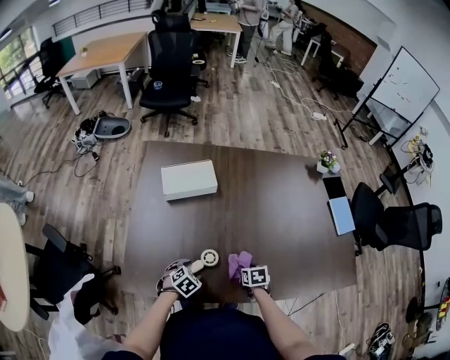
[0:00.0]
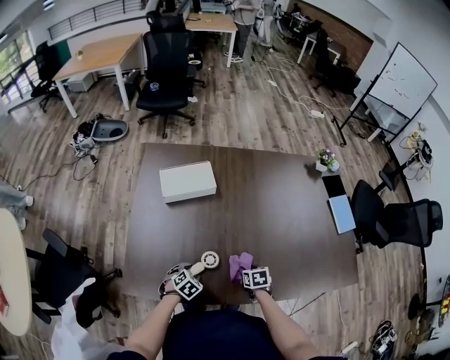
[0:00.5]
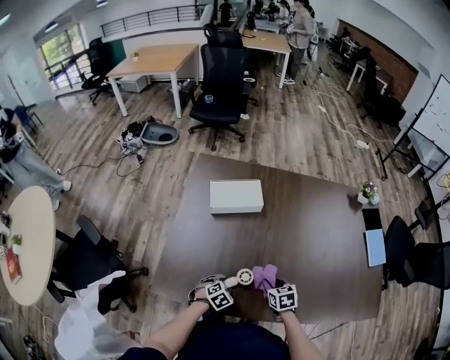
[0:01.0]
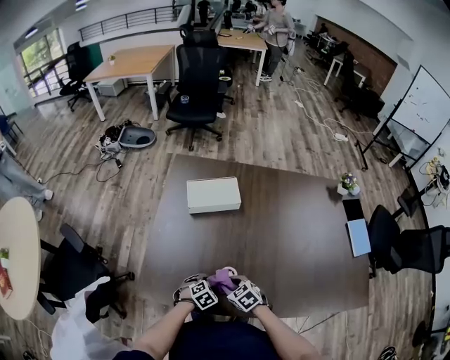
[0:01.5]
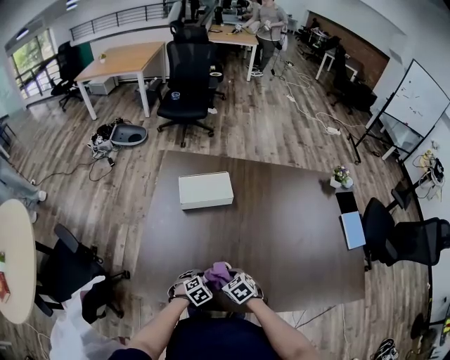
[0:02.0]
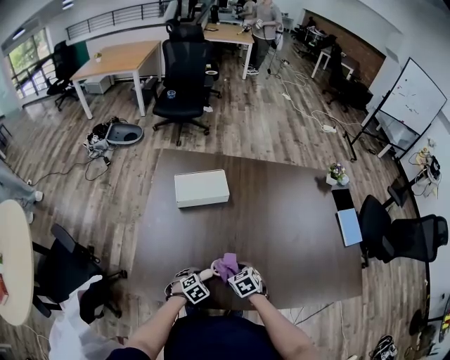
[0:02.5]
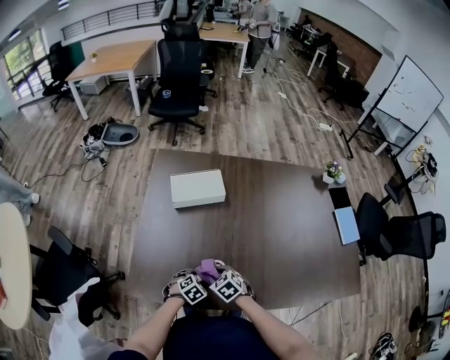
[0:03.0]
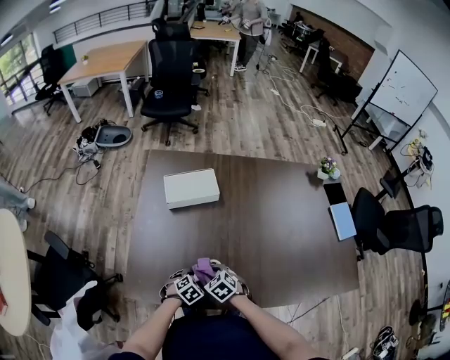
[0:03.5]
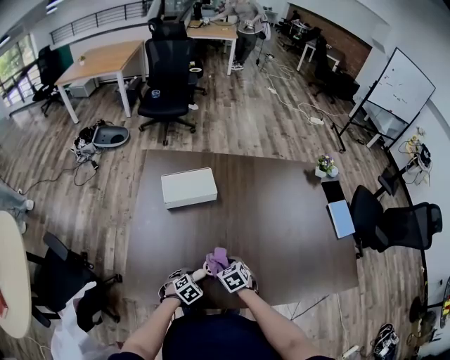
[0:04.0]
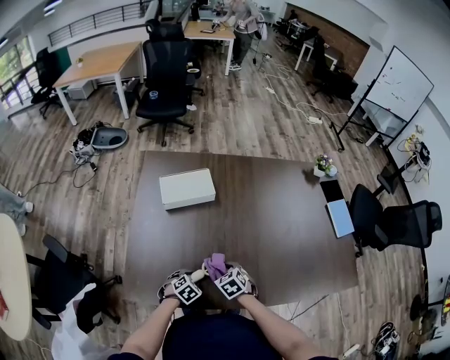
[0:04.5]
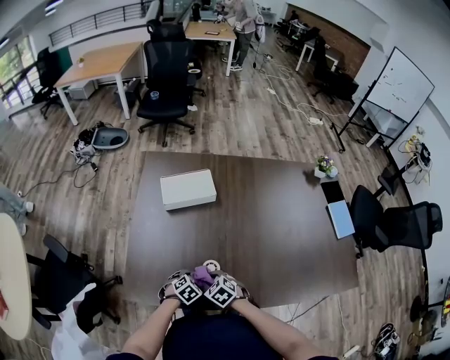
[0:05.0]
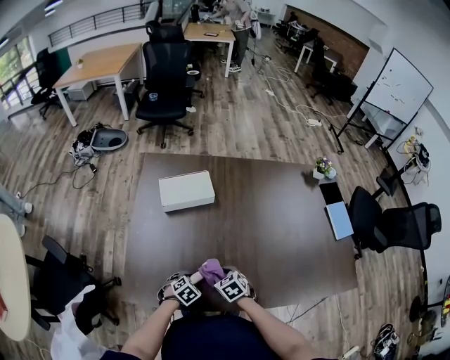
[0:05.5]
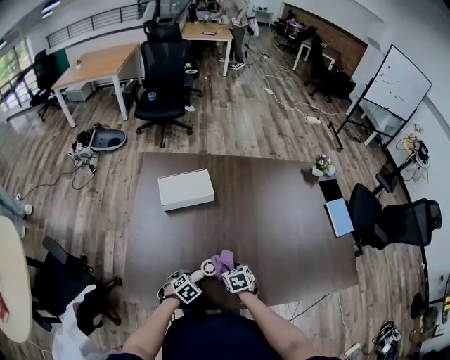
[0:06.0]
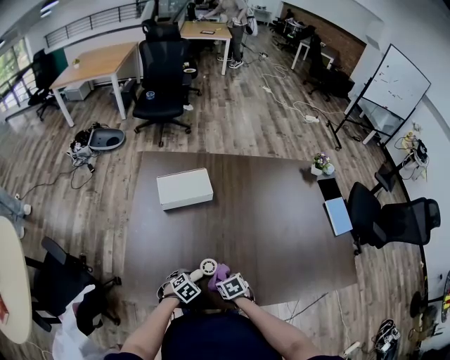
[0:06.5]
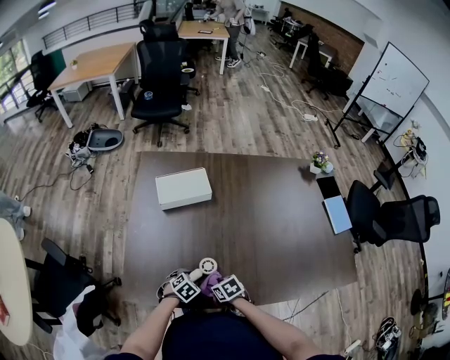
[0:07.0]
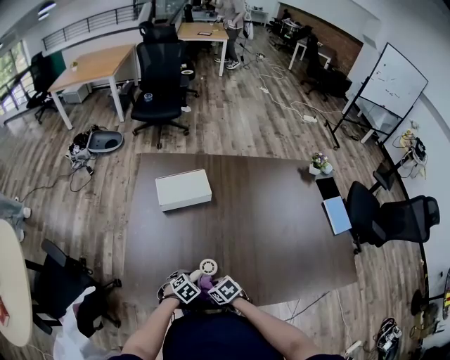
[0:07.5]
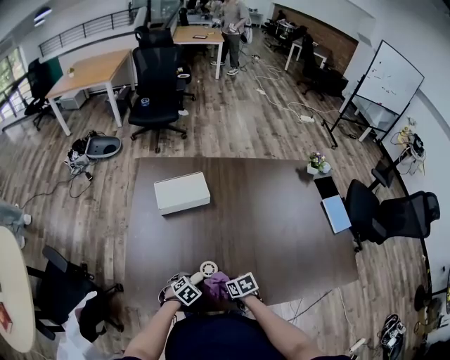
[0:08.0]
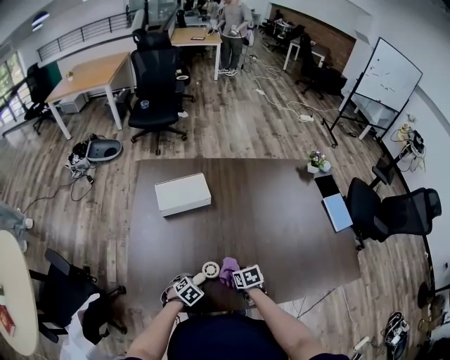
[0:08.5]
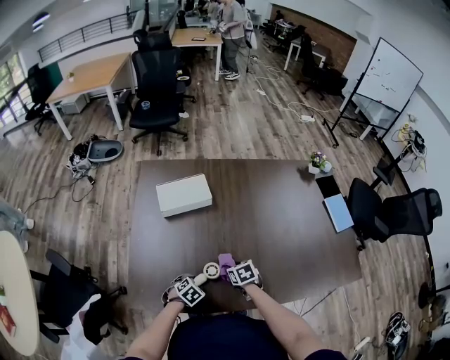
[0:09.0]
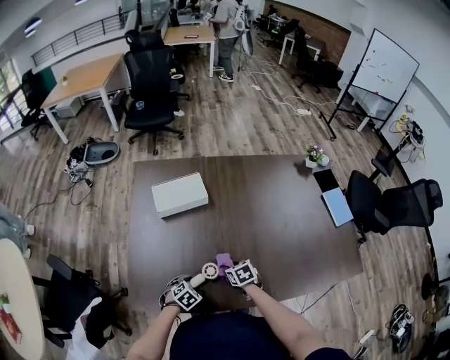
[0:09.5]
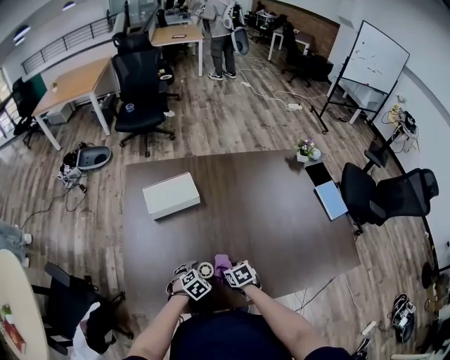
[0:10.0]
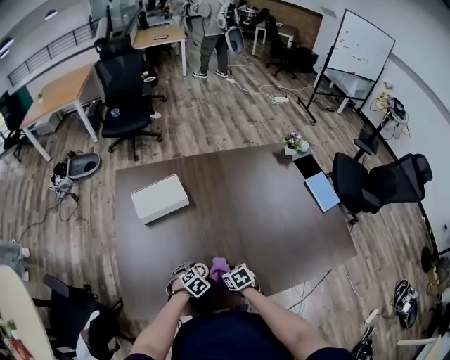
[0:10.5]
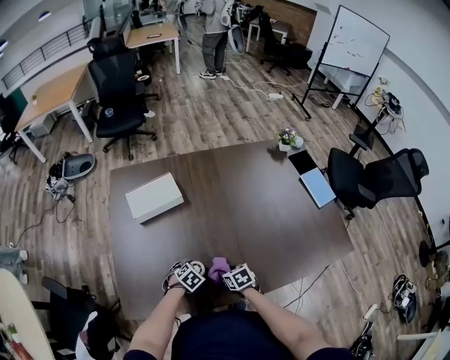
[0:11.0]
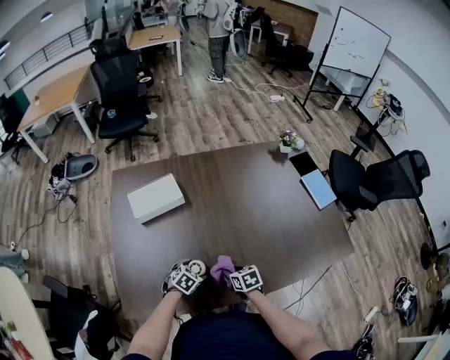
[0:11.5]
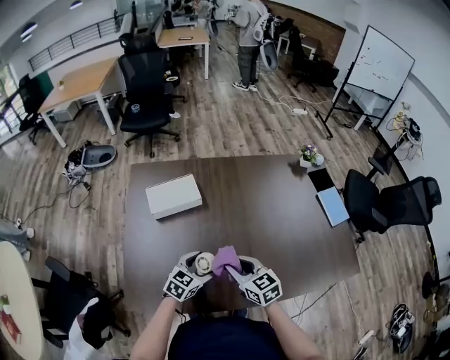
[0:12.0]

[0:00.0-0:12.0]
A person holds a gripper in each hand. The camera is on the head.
0:00.0 to 0:02.0: The right gripper travels to the left by roughly 15 cm, and turns by some 40 degrees.
0:02.0 to 0:04.0: The right gripper moves left and right over roughly 5 cm, changing direction 2 times.
0:06.0 to 0:08.0: The right gripper swivels some 20 degrees.
0:08.0 to 0:10.0: The left gripper moves to the right, approximately 5 cm, and opens up, while the right gripper travels forward by about 5 cm.
0:10.0 to 0:12.0: The grippers both shift upward by approximately 20 cm. The left gripper points its fingers some 30 degrees further upward; the right gripper tips its fingers upward by some 30 degrees.

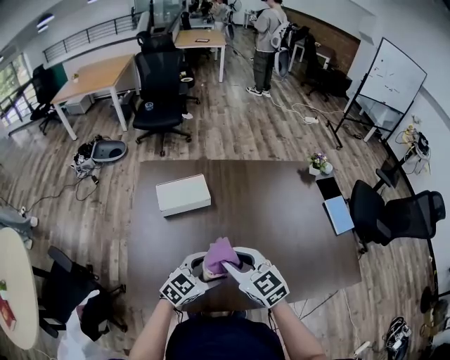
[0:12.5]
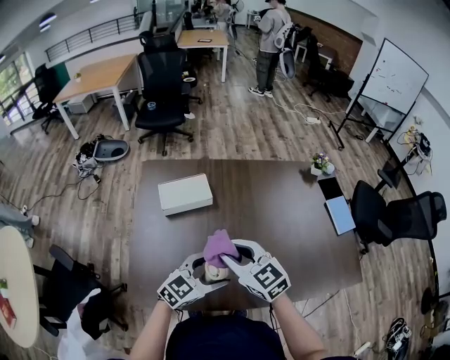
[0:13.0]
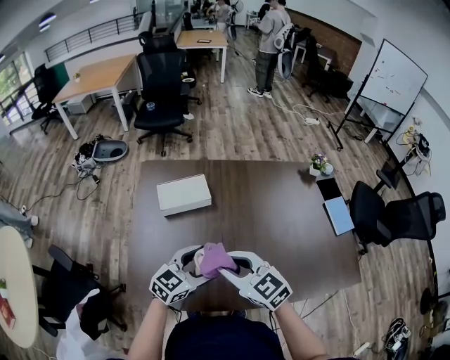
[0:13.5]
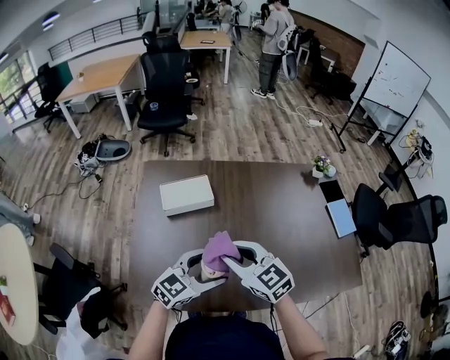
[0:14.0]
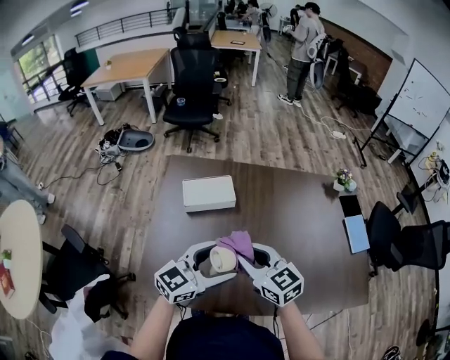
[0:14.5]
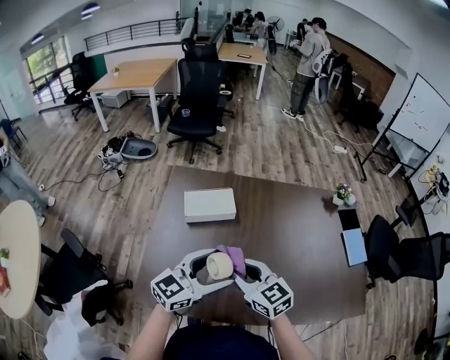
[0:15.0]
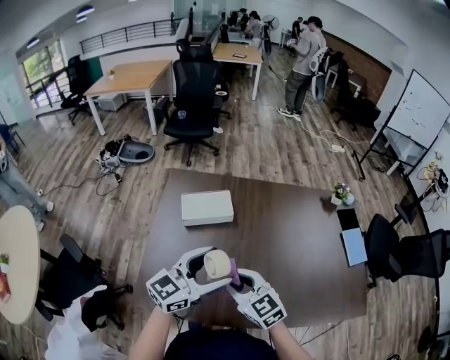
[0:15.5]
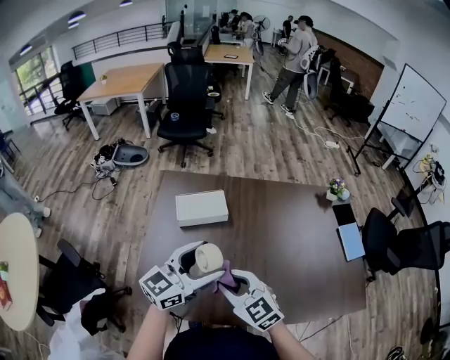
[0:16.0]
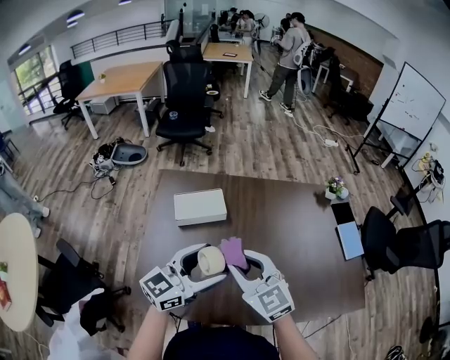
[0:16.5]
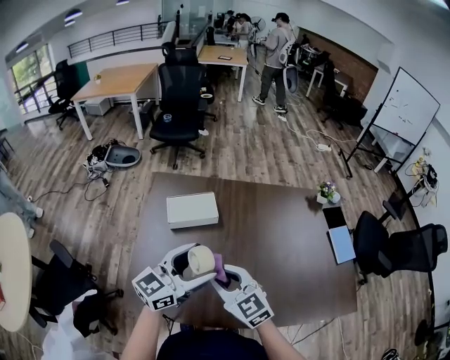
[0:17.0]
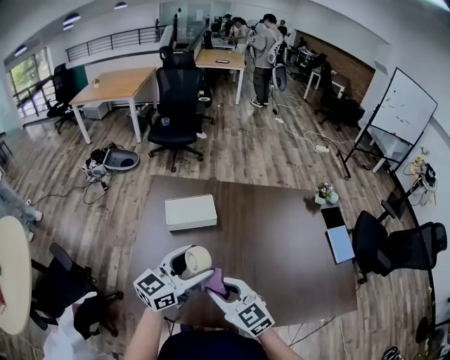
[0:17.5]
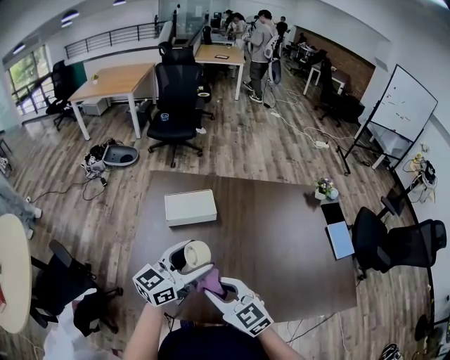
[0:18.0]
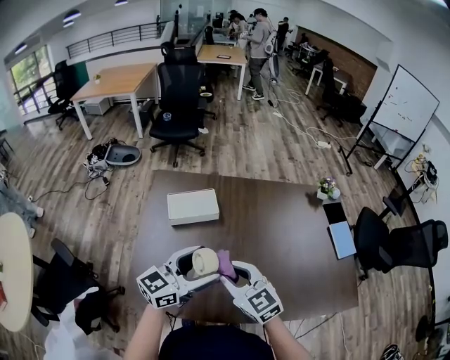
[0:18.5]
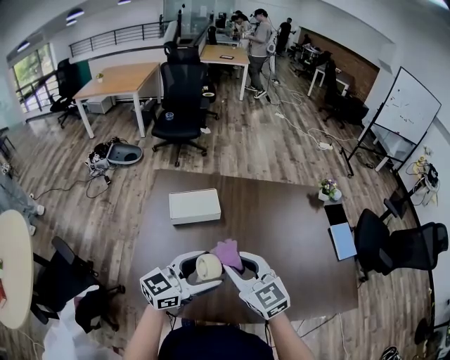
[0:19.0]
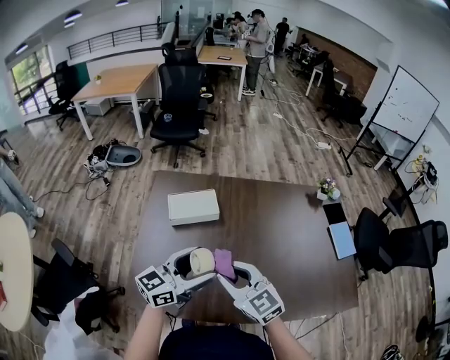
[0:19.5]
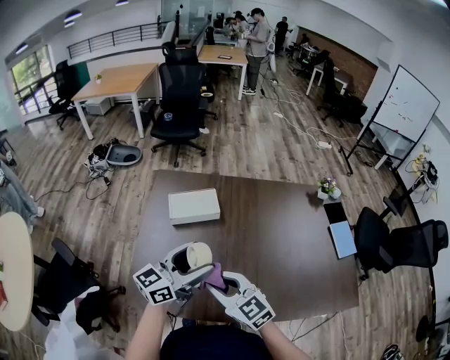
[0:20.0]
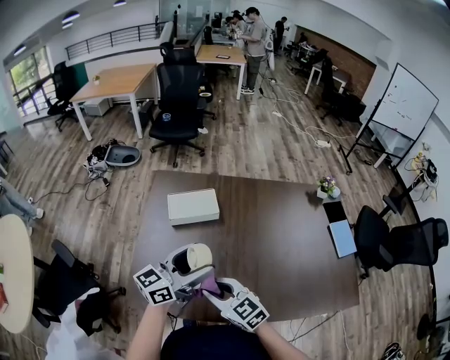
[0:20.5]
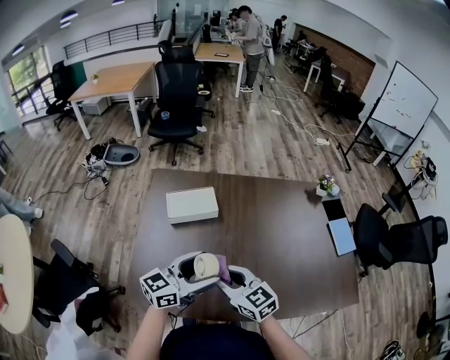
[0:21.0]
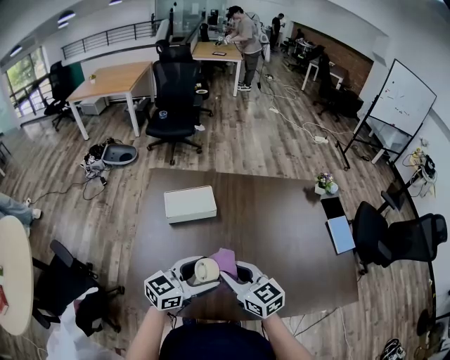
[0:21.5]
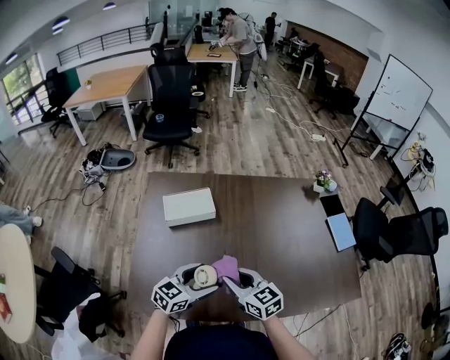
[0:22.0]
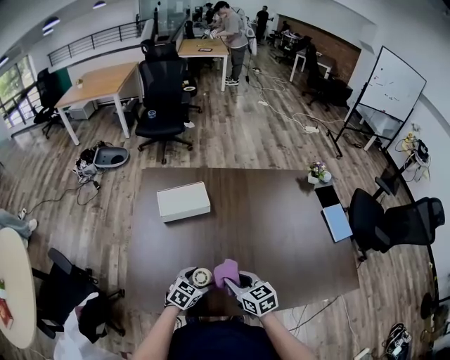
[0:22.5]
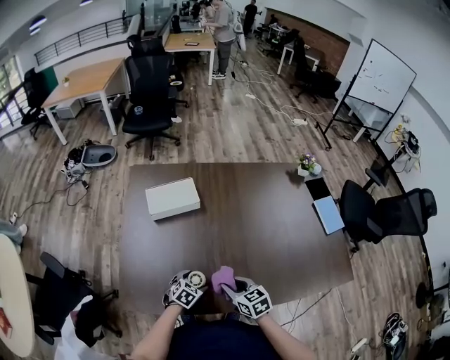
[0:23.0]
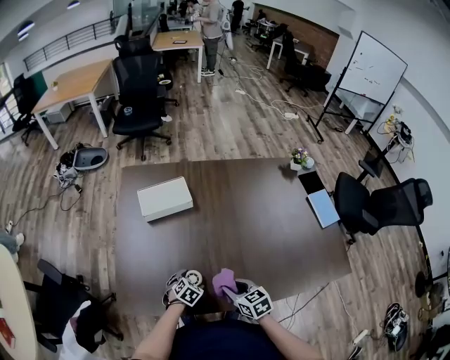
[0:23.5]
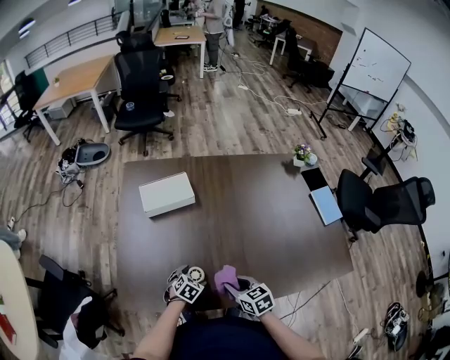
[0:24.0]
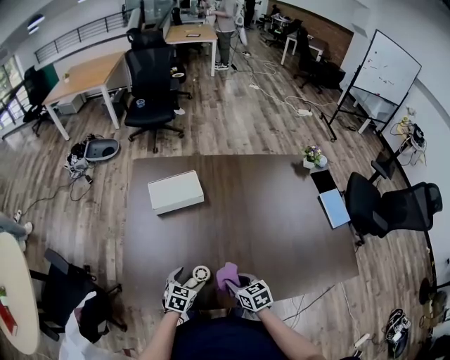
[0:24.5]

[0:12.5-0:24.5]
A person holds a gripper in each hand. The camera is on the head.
0:12.5 to 0:14.5: The left gripper travels upward by roughly 15 cm, and changes its angle by about 20 degrees.
0:14.5 to 0:16.5: The left gripper moves about 5 cm; the right gripper travels upward by some 5 cm.
0:18.5 to 0:20.5: The right gripper moves downward and backward, roughly 10 cm.
0:20.5 to 0:22.5: The left gripper shifts some 30 cm downward, and tips its fingers downward by some 50 degrees. Meanwhile the right gripper is displaced downward and to the right by approximately 15 cm, and turns by roughly 30 degrees.
0:22.5 to 0:24.5: The right gripper travels downward by roughly 10 cm; the left gripper goes downward and returns, some 10 cm each way.

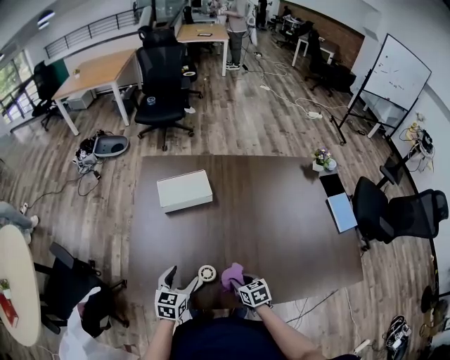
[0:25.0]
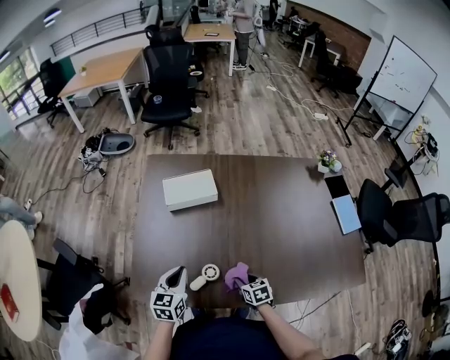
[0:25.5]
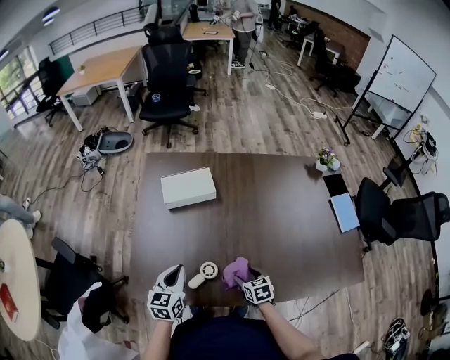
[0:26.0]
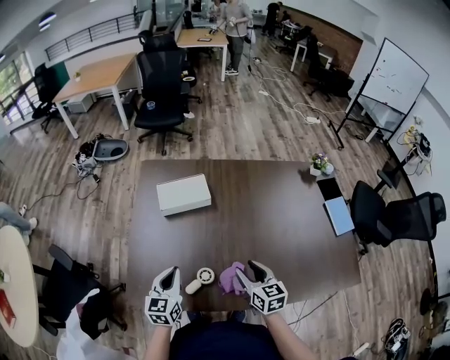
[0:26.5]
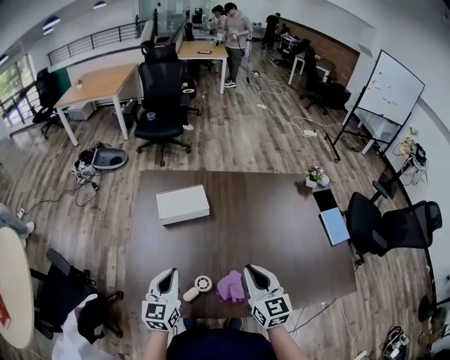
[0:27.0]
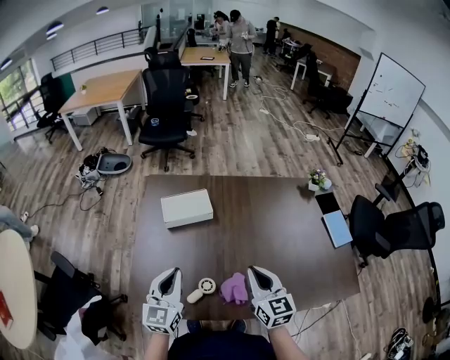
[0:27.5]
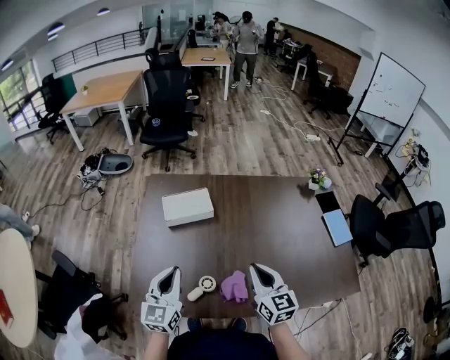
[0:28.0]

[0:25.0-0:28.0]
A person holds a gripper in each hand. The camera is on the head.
0:25.0 to 0:26.5: The left gripper heads upward, covering approximately 10 cm, and closes. The right gripper heads upward, covering about 15 cm, swivels some 30 degrees, and opens up.
0:26.5 to 0:28.0: Both grippers move upward, about 10 cm. The right gripper closes up.
